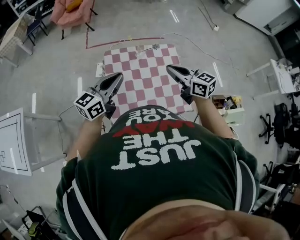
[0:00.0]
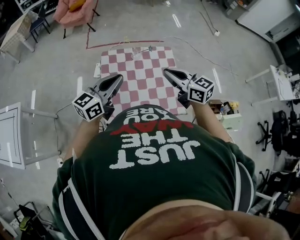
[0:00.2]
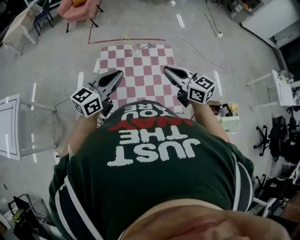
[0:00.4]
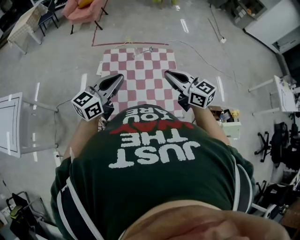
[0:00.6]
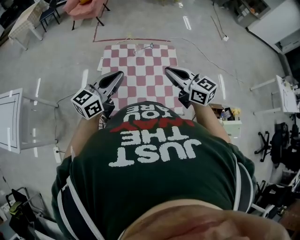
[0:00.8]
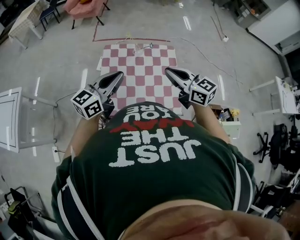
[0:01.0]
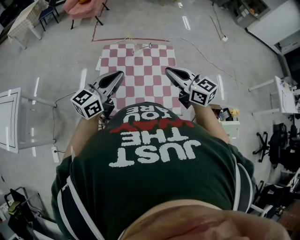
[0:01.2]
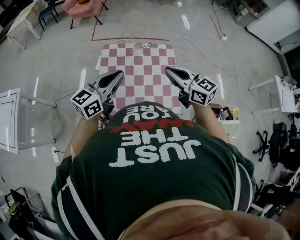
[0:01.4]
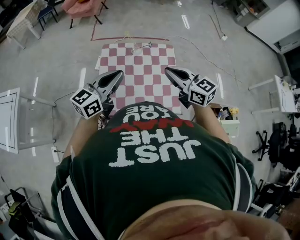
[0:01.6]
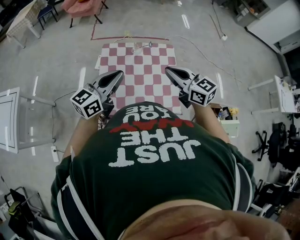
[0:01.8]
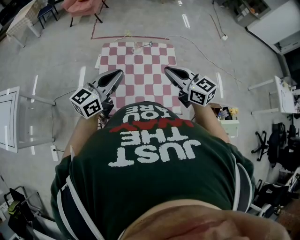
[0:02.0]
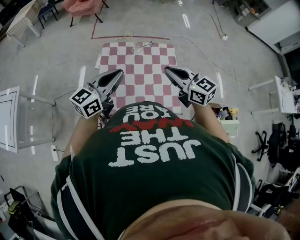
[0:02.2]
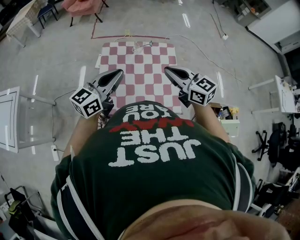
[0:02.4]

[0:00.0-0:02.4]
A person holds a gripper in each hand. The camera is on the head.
0:00.0 to 0:01.2: Both grippers travel together to the right, about 5 cm.
0:01.2 to 0:02.4: Neither gripper changes place.

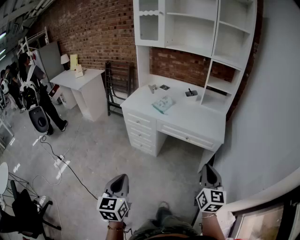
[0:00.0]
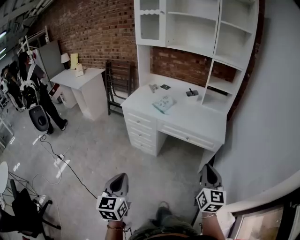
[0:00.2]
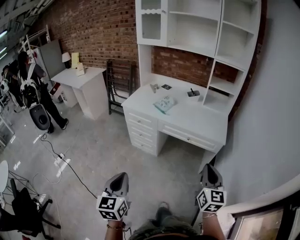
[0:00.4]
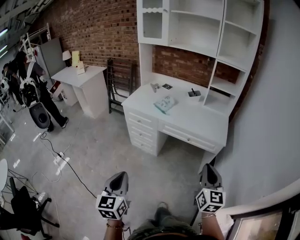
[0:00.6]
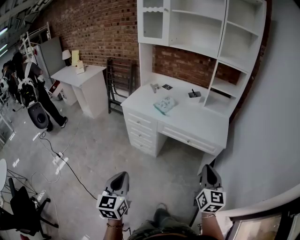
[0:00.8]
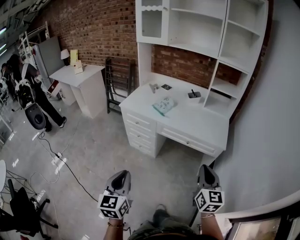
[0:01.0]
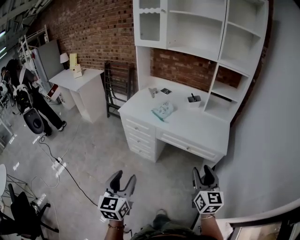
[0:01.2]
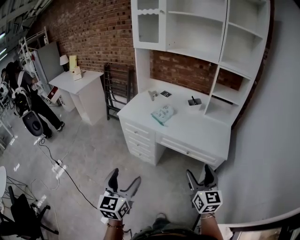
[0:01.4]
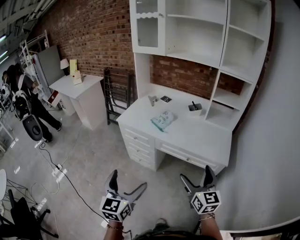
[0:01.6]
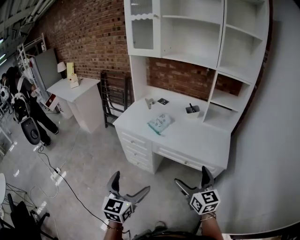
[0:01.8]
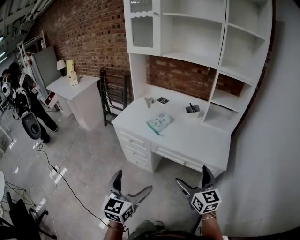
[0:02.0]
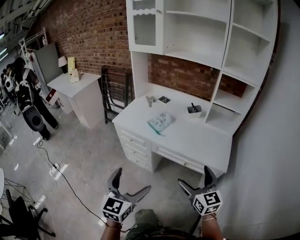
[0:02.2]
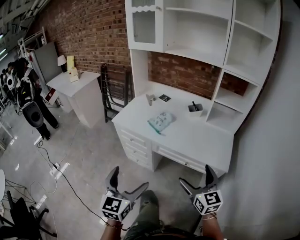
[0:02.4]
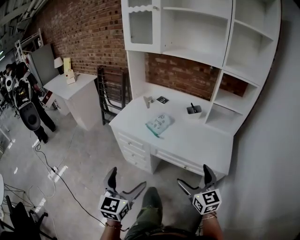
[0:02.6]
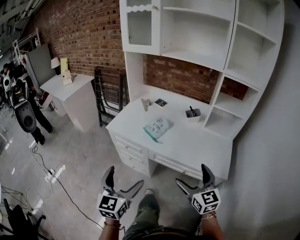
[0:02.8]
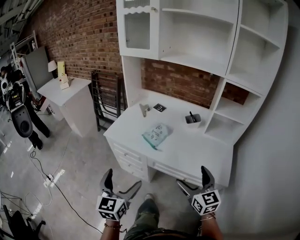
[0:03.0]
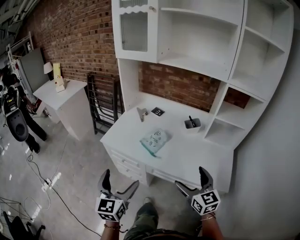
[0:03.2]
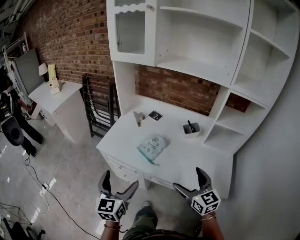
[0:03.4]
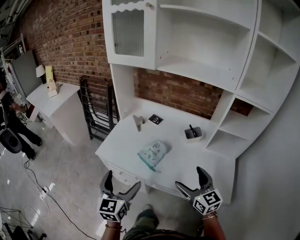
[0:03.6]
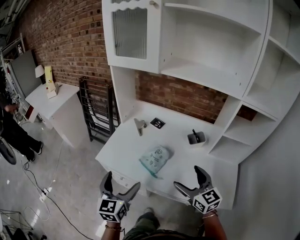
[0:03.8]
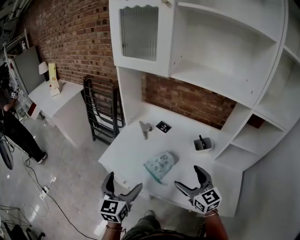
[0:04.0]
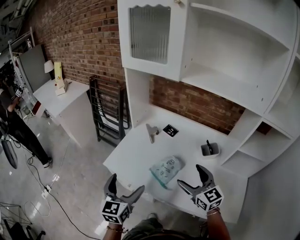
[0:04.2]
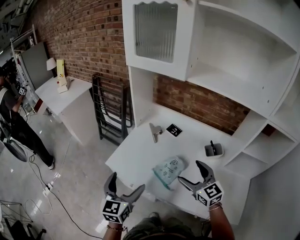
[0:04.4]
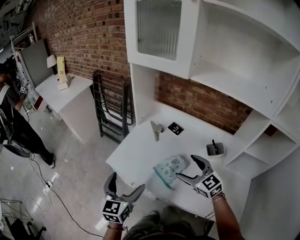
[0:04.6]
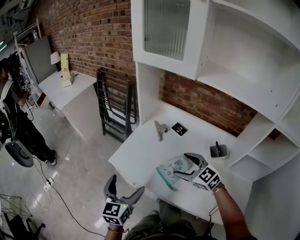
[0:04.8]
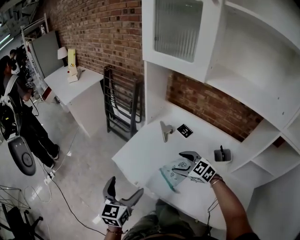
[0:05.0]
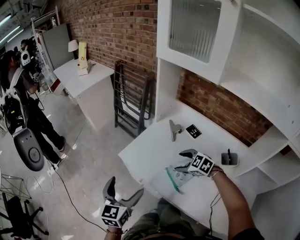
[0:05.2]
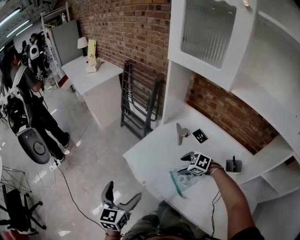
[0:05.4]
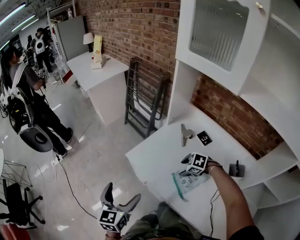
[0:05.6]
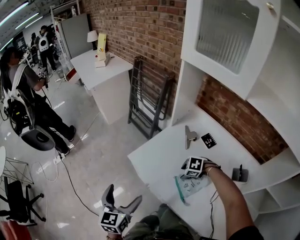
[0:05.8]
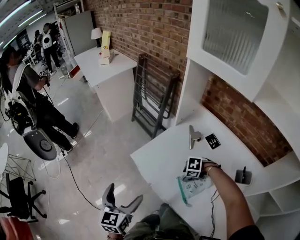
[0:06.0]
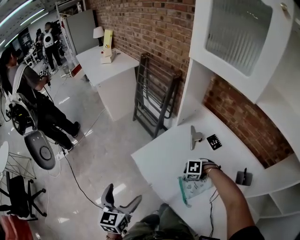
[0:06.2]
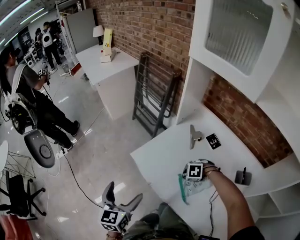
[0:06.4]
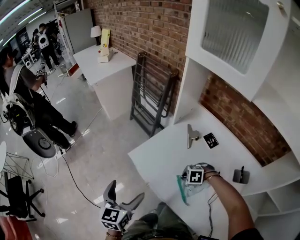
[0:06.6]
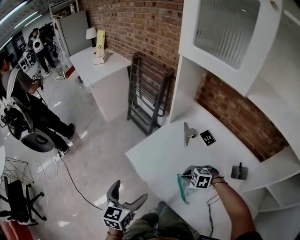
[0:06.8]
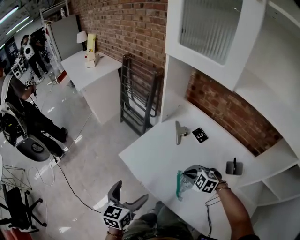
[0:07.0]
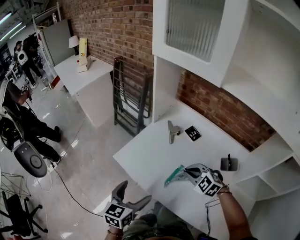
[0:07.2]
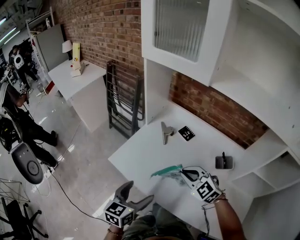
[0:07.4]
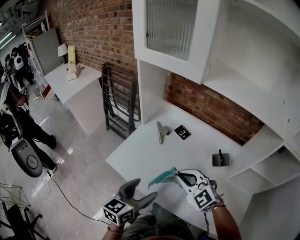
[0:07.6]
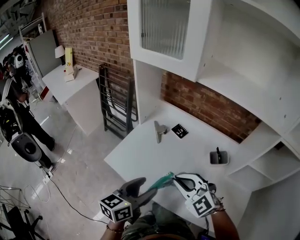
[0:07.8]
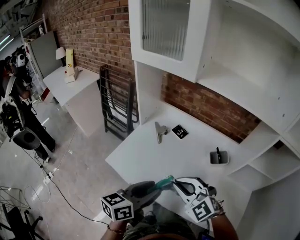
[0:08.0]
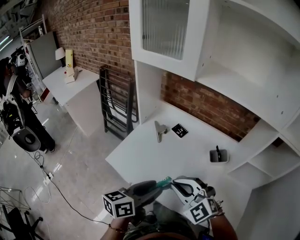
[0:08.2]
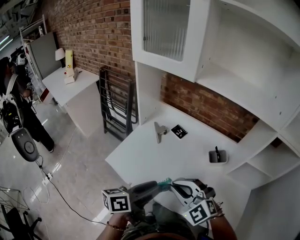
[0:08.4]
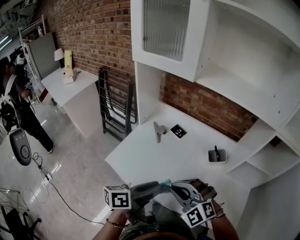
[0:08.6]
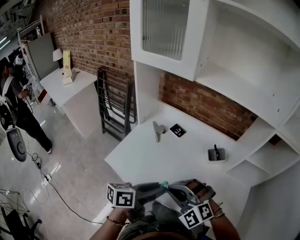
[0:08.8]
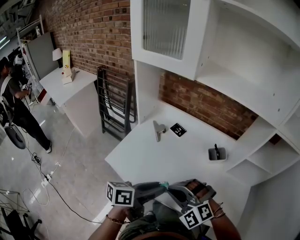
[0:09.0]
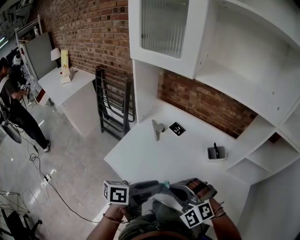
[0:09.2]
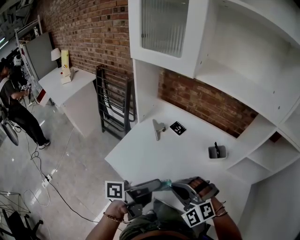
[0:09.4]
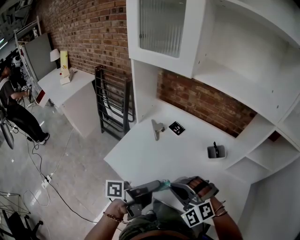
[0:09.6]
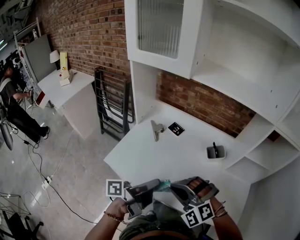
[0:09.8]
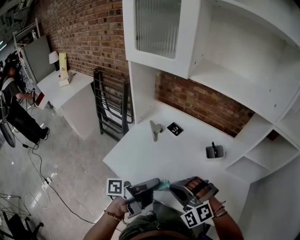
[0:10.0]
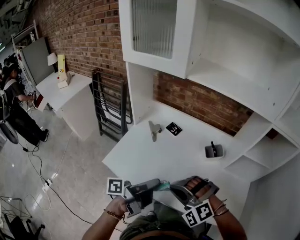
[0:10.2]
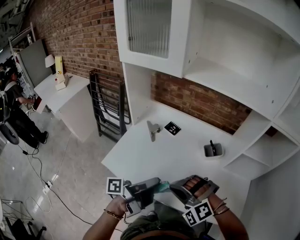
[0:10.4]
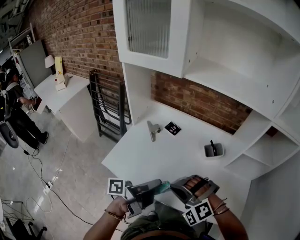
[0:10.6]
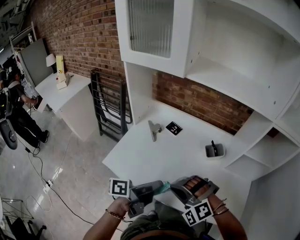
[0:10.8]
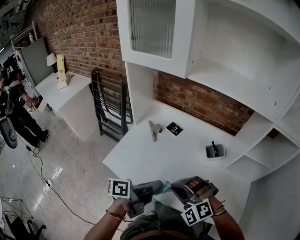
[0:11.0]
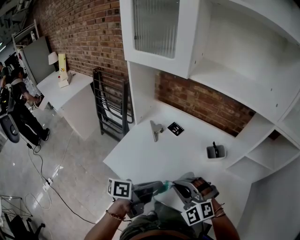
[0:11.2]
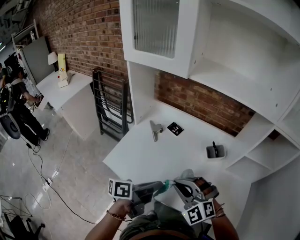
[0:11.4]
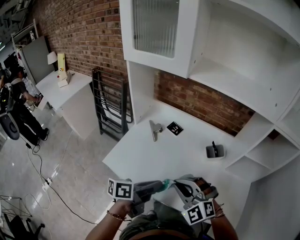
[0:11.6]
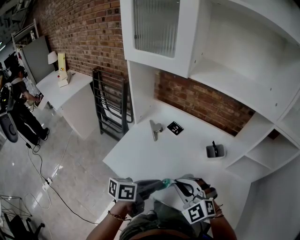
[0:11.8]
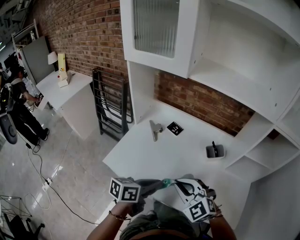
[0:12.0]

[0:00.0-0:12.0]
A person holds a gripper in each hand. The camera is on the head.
0:00.0 to 0:01.6: The two grippers go about 20 cm forward. The left gripper opens its fingers. The right gripper opens its fingers.
0:01.6 to 0:03.0: The two grippers go about 20 cm forward.
0:03.0 to 0:04.4: The grippers both shift forward by roughly 30 cm.
0:04.4 to 0:06.0: The right gripper goes about 25 cm downward, points its fingers some 60 degrees further downward, and closes, while the left gripper shifts by about 10 cm, and swivels some 30 degrees.
0:06.0 to 0:07.6: The left gripper moves some 20 cm, and rotates approximately 40 degrees. Meanwhile the right gripper is displaced upward by some 25 cm, tips its fingers upward by approximately 40 degrees, and closes up.
0:07.6 to 0:09.0: The left gripper moves to the right, roughly 5 cm, changes its angle by about 40 degrees, and closes up. The right gripper travels backward by roughly 10 cm, and turns by roughly 30 degrees.
0:09.0 to 0:10.4: The left gripper changes its angle by roughly 40 degrees.
0:10.4 to 0:12.0: The right gripper turns by approximately 40 degrees. Meanwhile the left gripper tips its fingers downward by approximately 30 degrees.

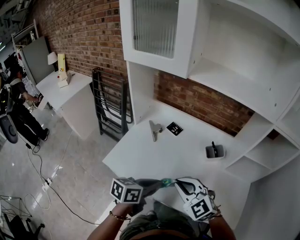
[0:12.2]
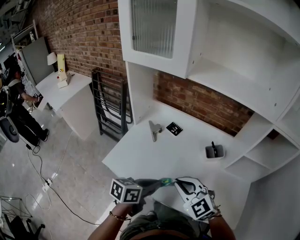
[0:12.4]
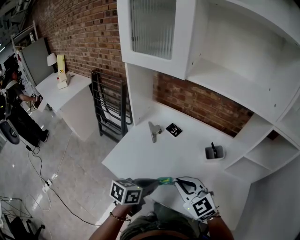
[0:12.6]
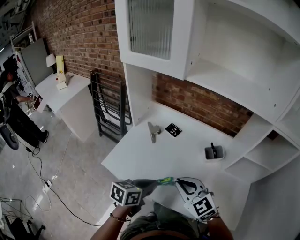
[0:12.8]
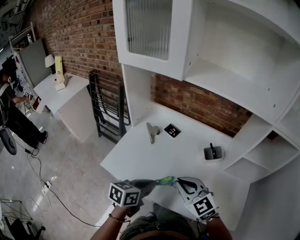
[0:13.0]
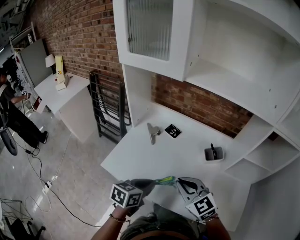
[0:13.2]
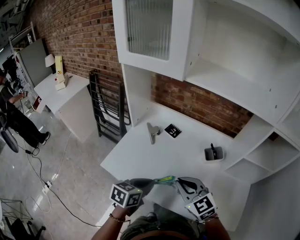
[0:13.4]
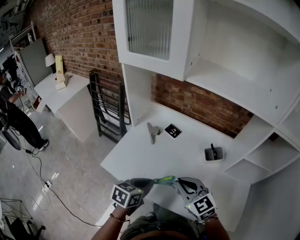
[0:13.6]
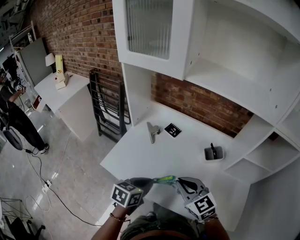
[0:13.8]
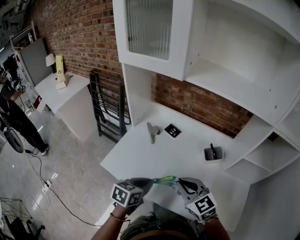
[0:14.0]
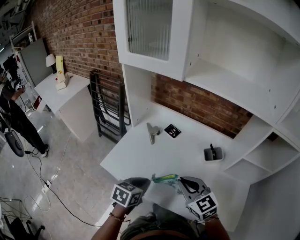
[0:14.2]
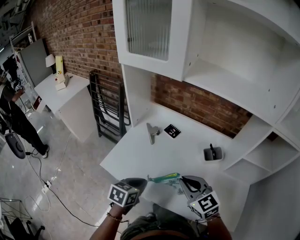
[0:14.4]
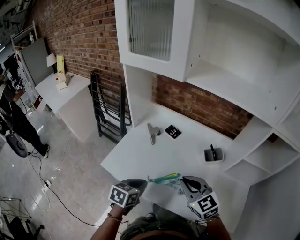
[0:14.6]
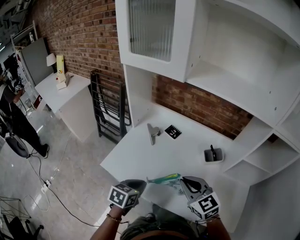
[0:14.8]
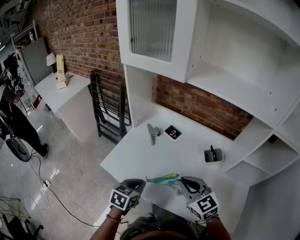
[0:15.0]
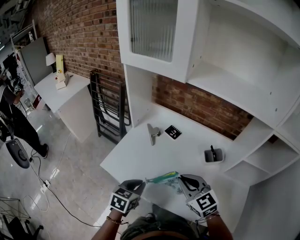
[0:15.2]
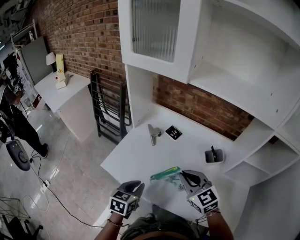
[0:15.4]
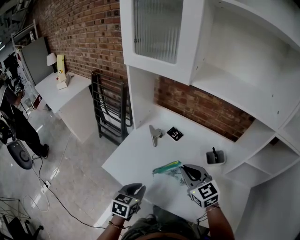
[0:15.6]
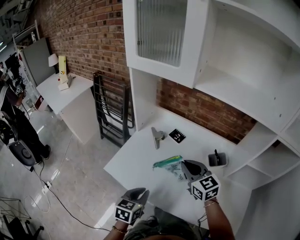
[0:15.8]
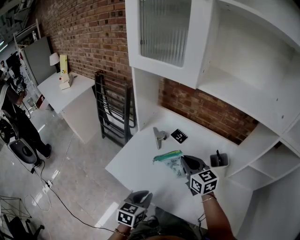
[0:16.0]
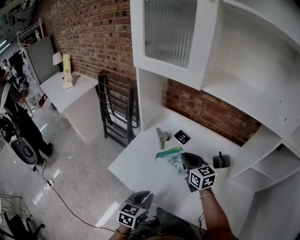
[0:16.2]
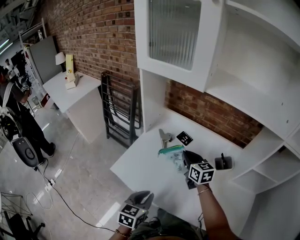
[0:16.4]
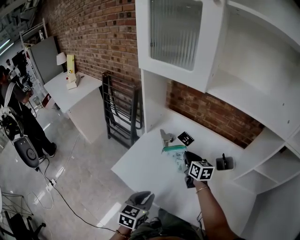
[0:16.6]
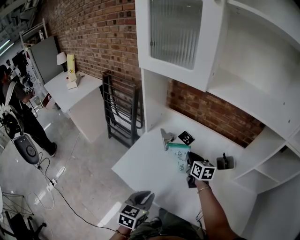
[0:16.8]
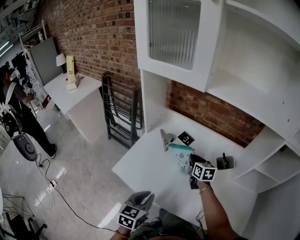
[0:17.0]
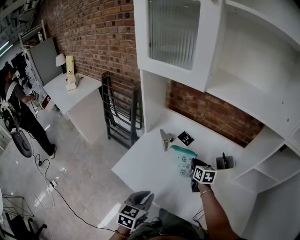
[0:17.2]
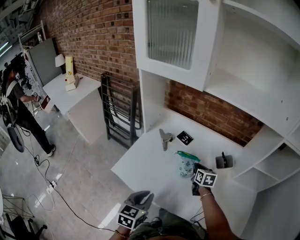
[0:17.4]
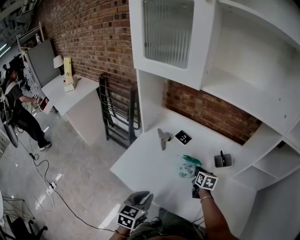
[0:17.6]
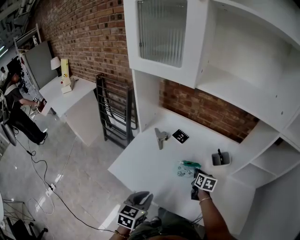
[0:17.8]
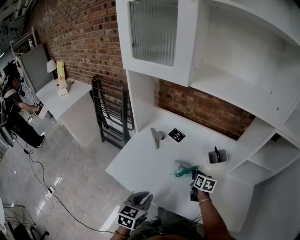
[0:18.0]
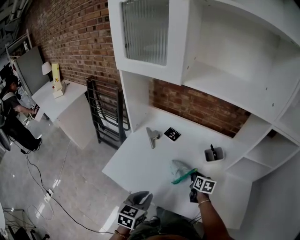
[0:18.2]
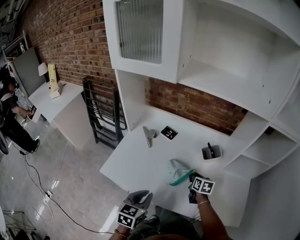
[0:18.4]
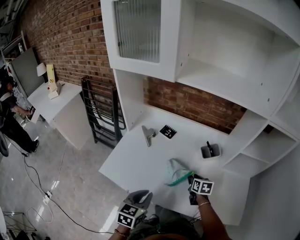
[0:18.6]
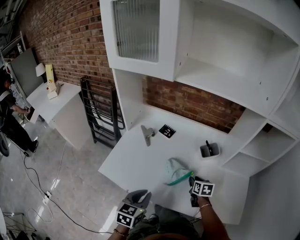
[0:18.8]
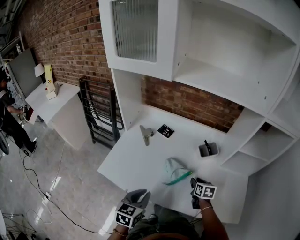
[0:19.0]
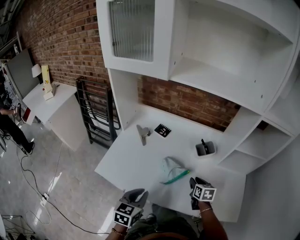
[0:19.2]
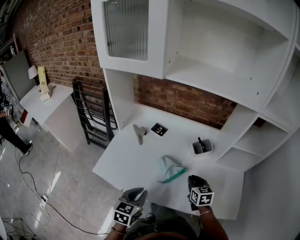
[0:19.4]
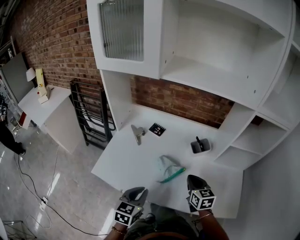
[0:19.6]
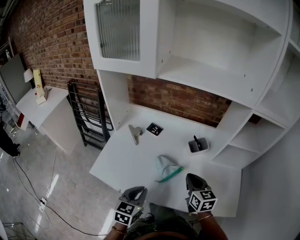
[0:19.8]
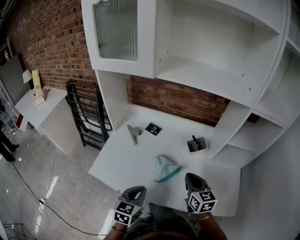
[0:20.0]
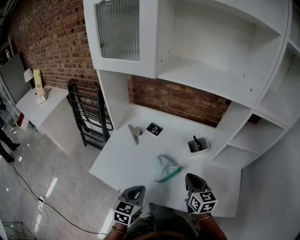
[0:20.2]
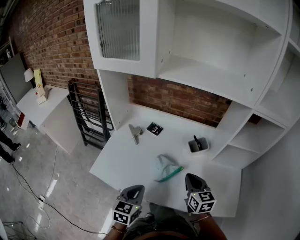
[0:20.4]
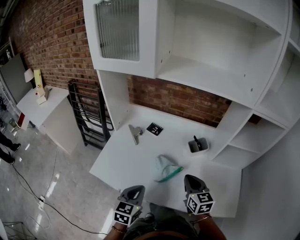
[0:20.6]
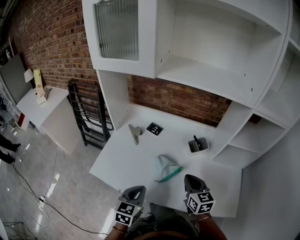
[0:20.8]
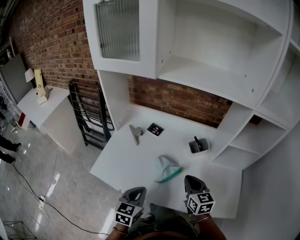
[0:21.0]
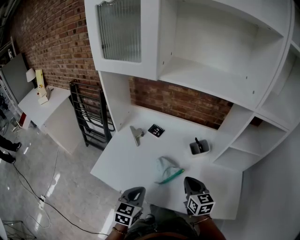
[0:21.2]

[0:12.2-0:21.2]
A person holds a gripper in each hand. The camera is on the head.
0:12.2 to 0:13.8: The left gripper shifts by roughly 5 cm. The right gripper changes its angle by some 20 degrees.
0:13.8 to 0:15.2: The left gripper changes place by some 5 cm.
0:15.2 to 0:16.6: The right gripper heads forward, covering some 20 cm, and changes its angle by about 30 degrees.
0:16.6 to 0:18.2: The right gripper goes some 25 cm to the right, downward and backward, and rotates roughly 30 degrees.
0:18.2 to 0:19.8: The right gripper goes approximately 20 cm upward and backward, and changes its angle by about 20 degrees.
0:19.8 to 0:21.2: There are only small adjustments of the grippers.
